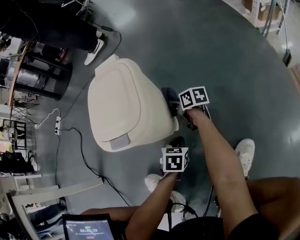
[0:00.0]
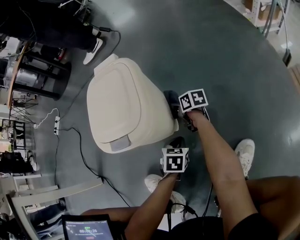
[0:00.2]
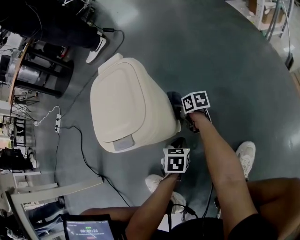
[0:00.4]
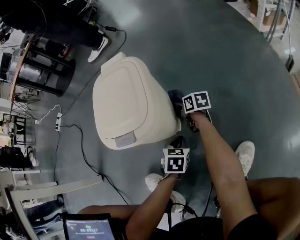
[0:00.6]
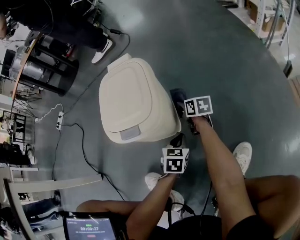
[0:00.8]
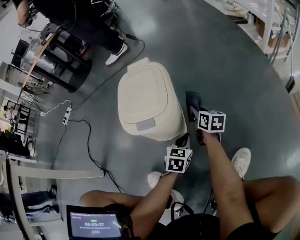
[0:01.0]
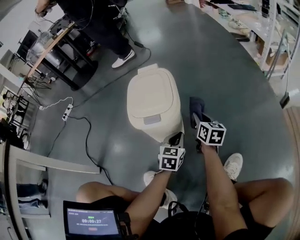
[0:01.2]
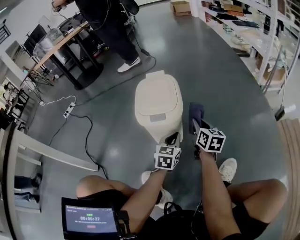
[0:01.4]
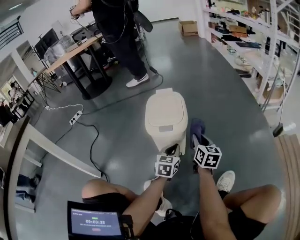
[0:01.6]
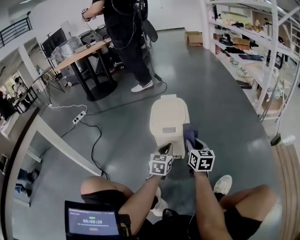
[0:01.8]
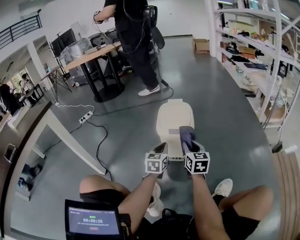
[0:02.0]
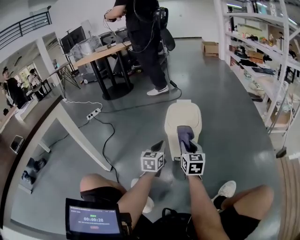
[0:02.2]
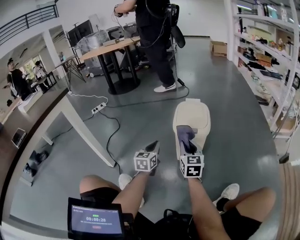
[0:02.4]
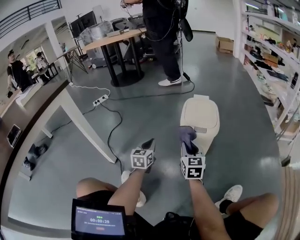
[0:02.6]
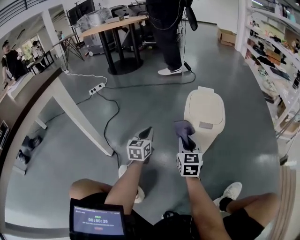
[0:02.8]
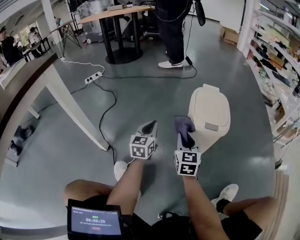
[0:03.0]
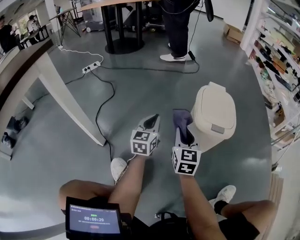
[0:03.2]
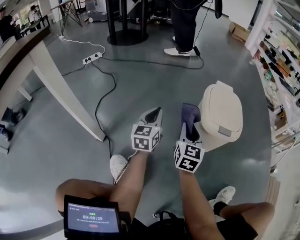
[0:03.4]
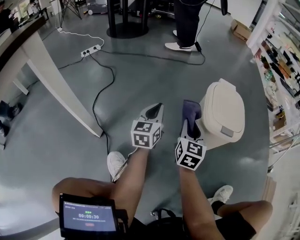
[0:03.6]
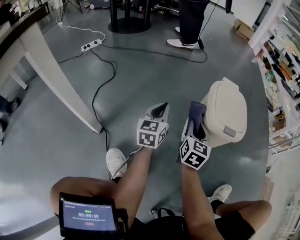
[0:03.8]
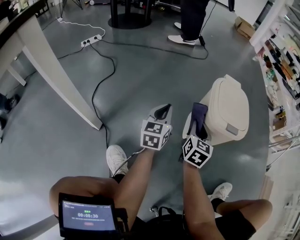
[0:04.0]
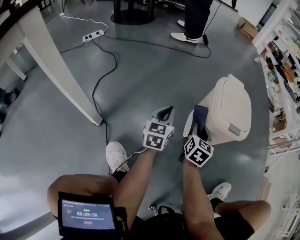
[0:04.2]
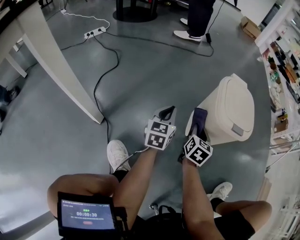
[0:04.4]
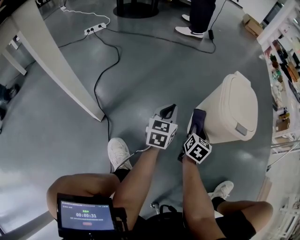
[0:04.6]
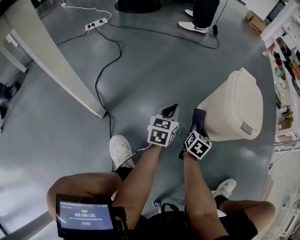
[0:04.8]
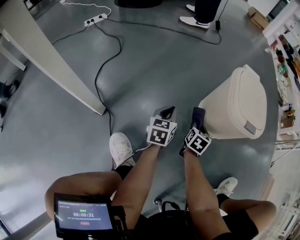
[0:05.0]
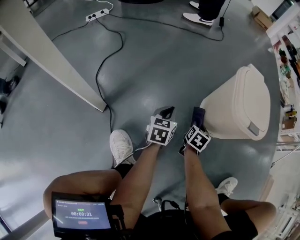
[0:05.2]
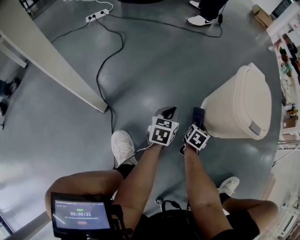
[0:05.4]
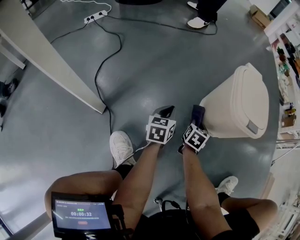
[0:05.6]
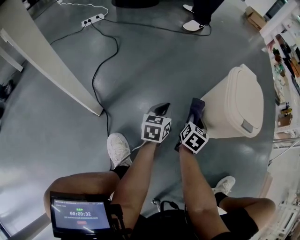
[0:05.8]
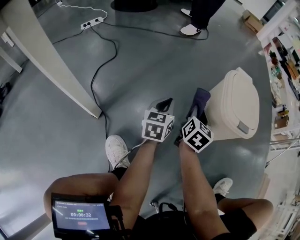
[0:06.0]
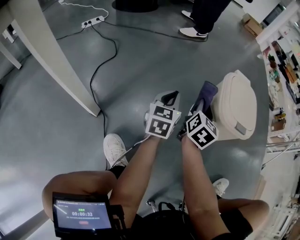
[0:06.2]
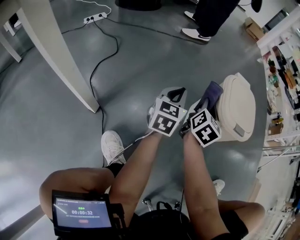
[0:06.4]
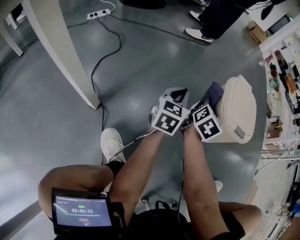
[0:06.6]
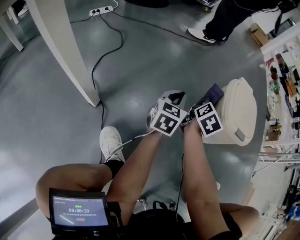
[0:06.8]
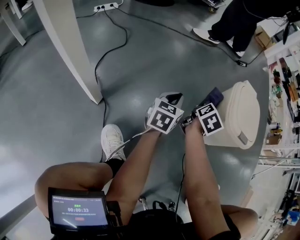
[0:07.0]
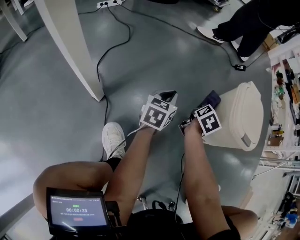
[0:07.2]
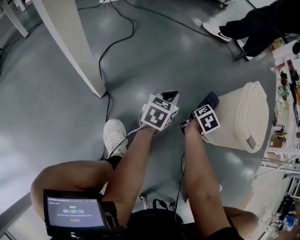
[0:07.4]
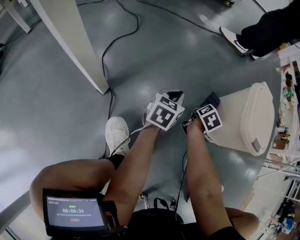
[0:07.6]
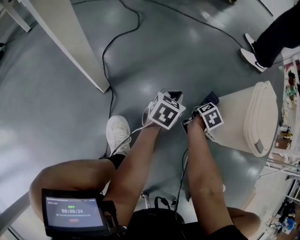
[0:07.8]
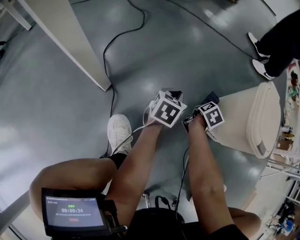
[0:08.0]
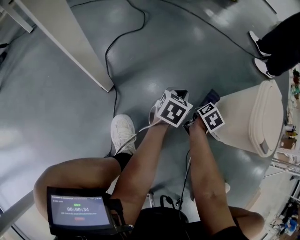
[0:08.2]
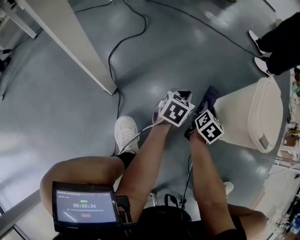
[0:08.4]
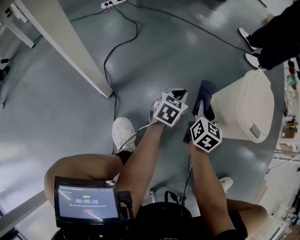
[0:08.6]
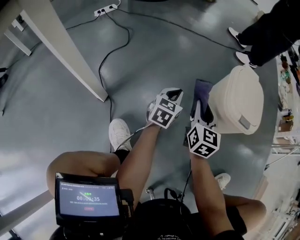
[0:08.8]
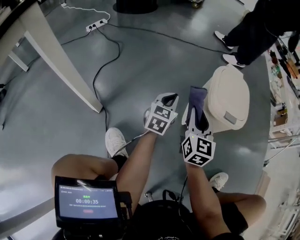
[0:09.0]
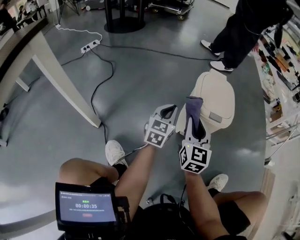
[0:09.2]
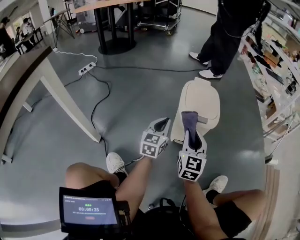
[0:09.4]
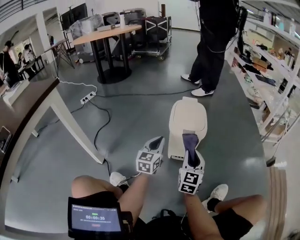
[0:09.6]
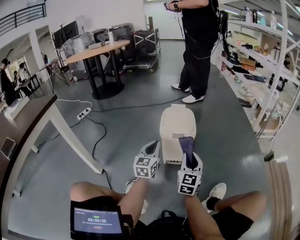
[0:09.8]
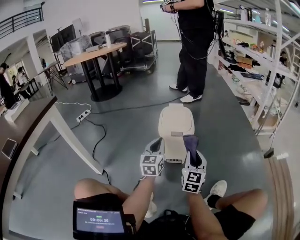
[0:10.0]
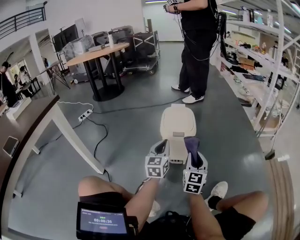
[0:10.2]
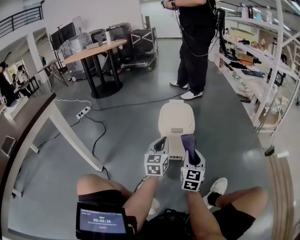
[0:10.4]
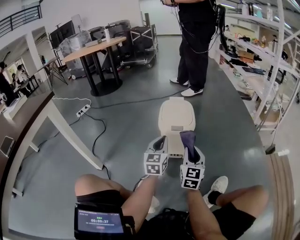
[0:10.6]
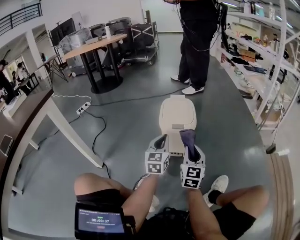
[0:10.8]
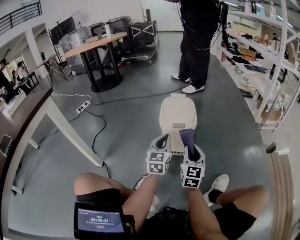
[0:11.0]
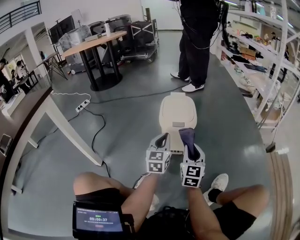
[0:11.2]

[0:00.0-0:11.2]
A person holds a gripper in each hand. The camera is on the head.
0:00.0 to 0:01.6: The right gripper travels upward and backward by some 30 cm, and changes its angle by approximately 50 degrees, while the left gripper is displaced upward by about 20 cm, and points its fingers roughly 30 degrees further upward.
0:01.6 to 0:03.2: The grippers both shift to the left by about 30 cm. The right gripper turns by about 30 degrees, while the left gripper rotates roughly 30 degrees.
0:03.2 to 0:04.8: The right gripper is displaced downward by approximately 20 cm, and swivels about 30 degrees. Meanwhile the left gripper goes roughly 10 cm downward.
0:04.8 to 0:06.4: The right gripper shifts about 15 cm upward, and changes its angle by roughly 20 degrees. Meanwhile the left gripper goes roughly 10 cm upward.
0:06.4 to 0:08.0: Both grippers travel together downward, roughly 20 cm. The right gripper swivels about 30 degrees, while the left gripper rotates about 20 degrees.
0:08.0 to 0:09.6: The right gripper travels upward, backward and to the right by some 40 cm, and angles its fingers upward, by approximately 40 degrees; the left gripper goes some 30 cm upward and to the right, and swivels some 30 degrees.
0:09.6 to 0:11.2: The left gripper moves to the right, about 10 cm.

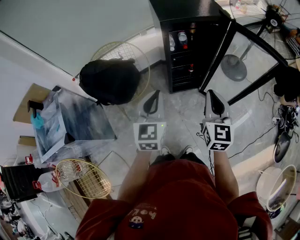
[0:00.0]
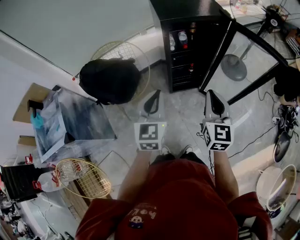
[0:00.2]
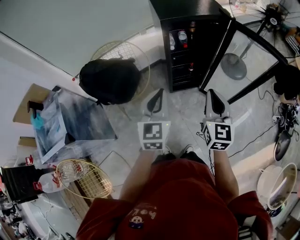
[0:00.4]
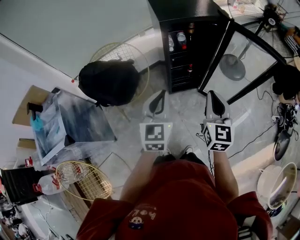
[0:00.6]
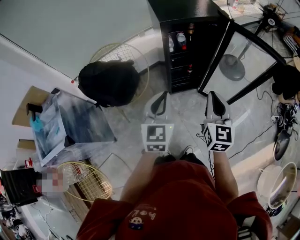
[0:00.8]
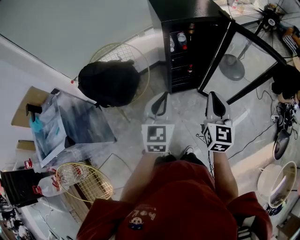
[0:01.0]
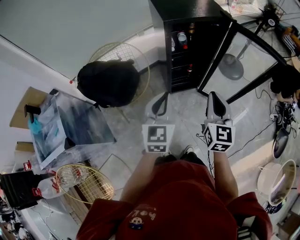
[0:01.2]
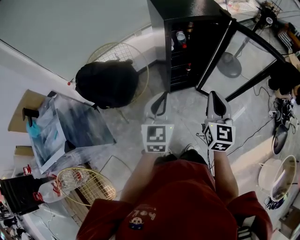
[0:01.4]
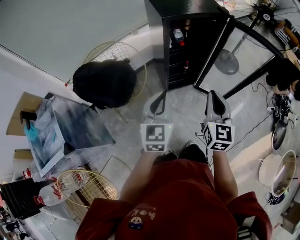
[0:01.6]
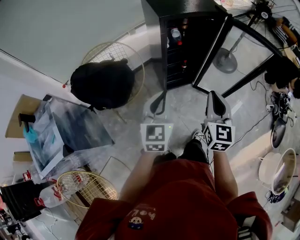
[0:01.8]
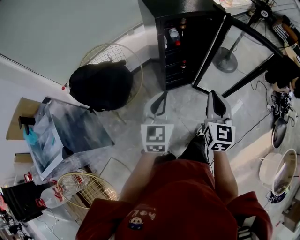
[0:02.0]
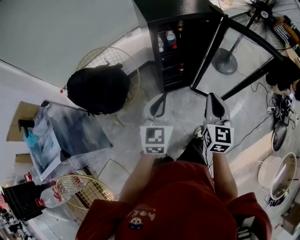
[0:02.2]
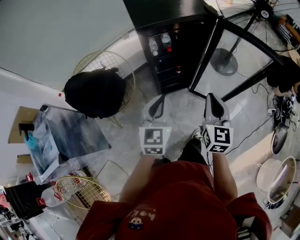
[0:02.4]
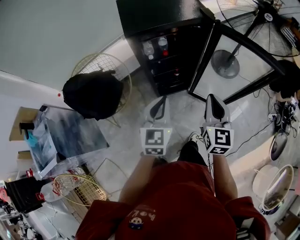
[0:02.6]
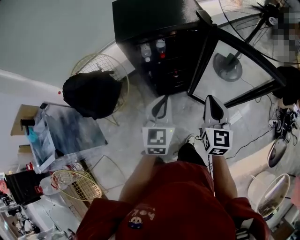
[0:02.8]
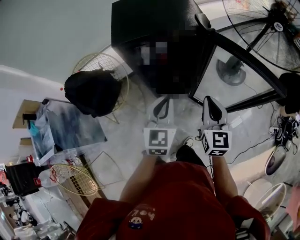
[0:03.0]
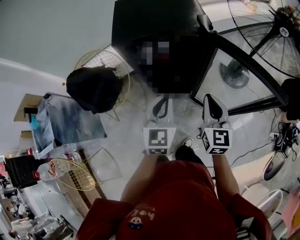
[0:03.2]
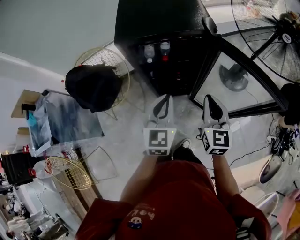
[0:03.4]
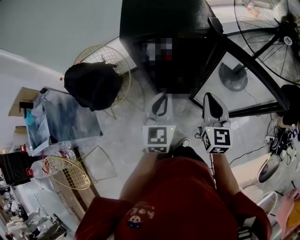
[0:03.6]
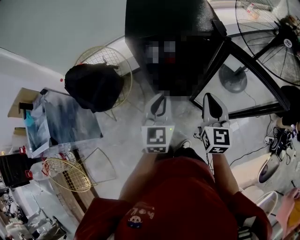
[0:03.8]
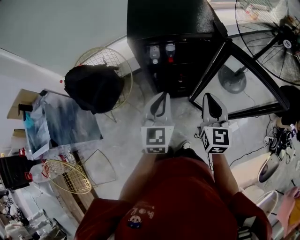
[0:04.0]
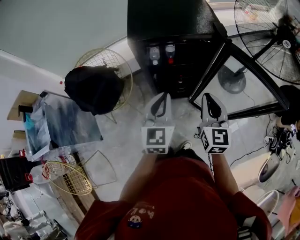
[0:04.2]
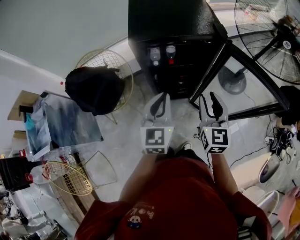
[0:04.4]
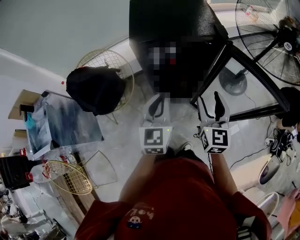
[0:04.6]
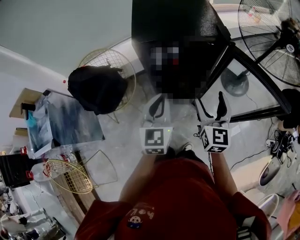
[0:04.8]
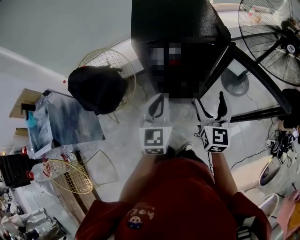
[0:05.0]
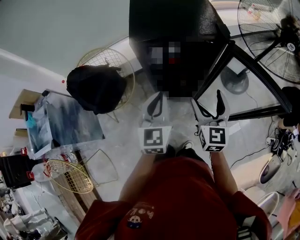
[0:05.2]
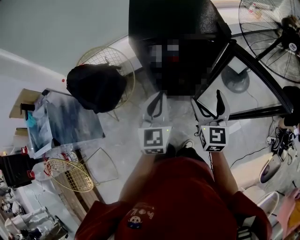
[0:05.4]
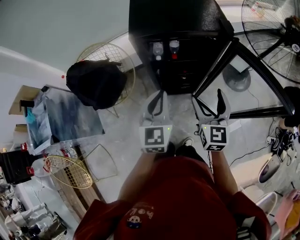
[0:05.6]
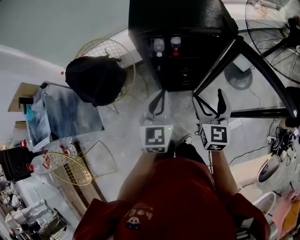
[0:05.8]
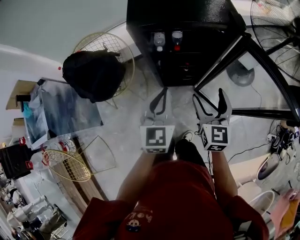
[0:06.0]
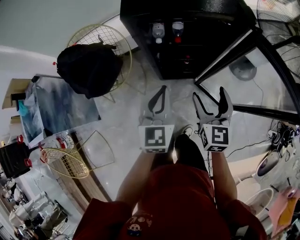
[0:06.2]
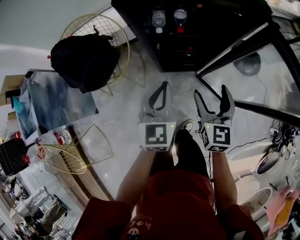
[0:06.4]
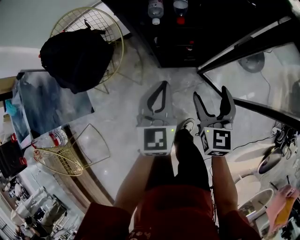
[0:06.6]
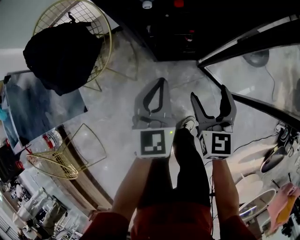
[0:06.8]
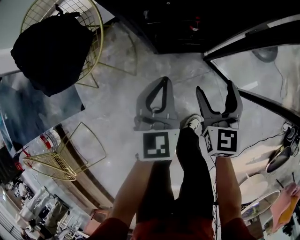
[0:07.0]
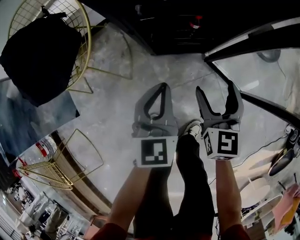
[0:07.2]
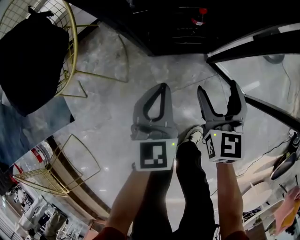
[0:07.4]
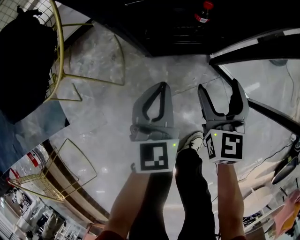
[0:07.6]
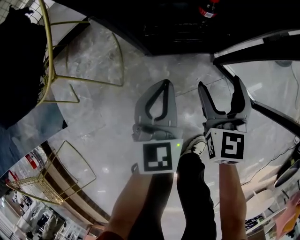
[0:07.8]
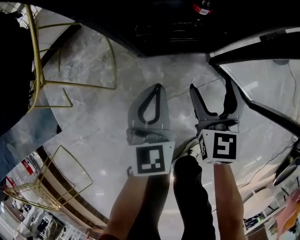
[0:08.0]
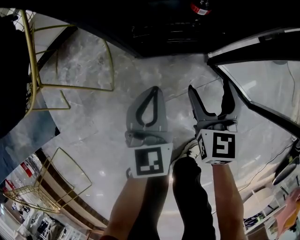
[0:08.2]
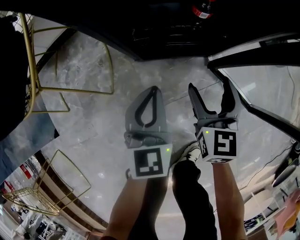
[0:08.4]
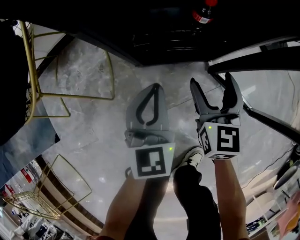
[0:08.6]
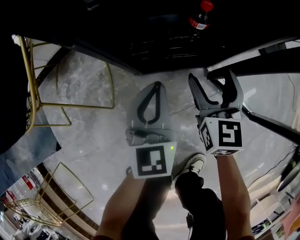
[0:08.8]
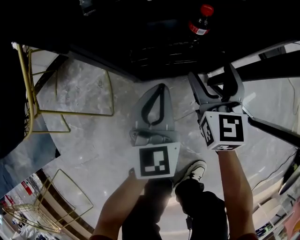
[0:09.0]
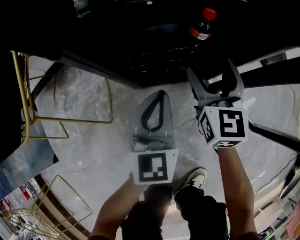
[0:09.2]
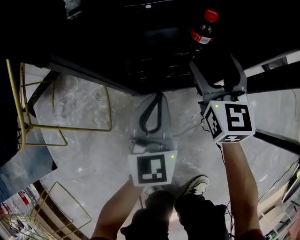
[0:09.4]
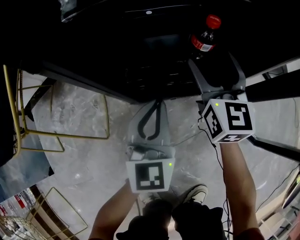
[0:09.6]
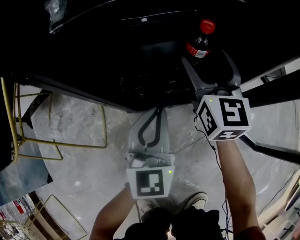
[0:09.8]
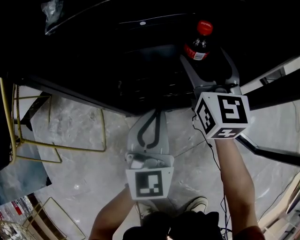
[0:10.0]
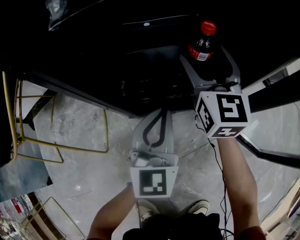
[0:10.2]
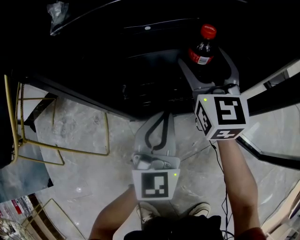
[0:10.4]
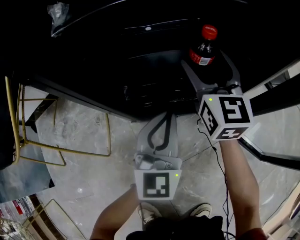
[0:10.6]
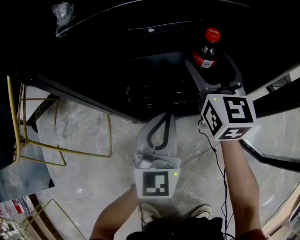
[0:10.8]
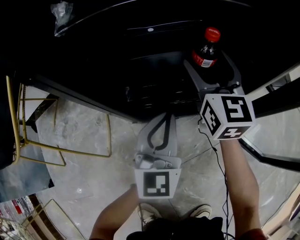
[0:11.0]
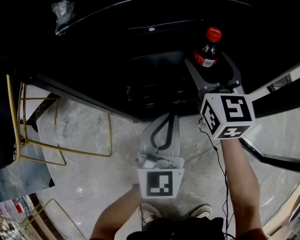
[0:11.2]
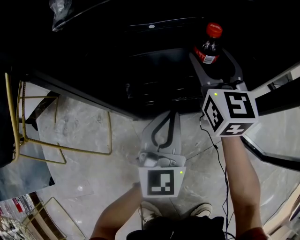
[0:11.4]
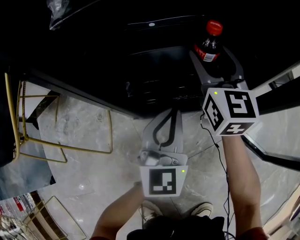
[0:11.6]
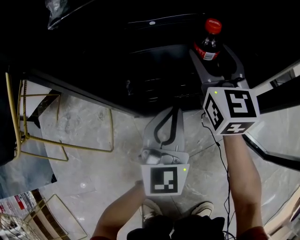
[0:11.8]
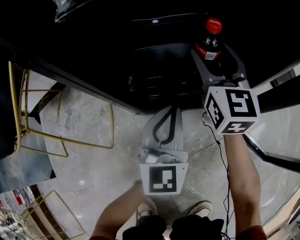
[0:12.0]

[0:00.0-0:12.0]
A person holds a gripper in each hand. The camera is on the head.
0:00.0 to 0:01.6: There are only small adjustments of the grippers.
0:01.6 to 0:03.0: The left gripper goes some 30 cm to the right and forward; the right gripper shifts roughly 30 cm forward and to the right.
0:03.0 to 0:04.4: The grippers both shift to the left by some 5 cm.
0:04.4 to 0:06.0: The left gripper changes place by about 5 cm. Meanwhile the right gripper goes approximately 5 cm downward, and opens its fingers.
0:06.0 to 0:07.6: Both grippers move downward, about 50 cm.
0:07.6 to 0:09.0: The left gripper shifts approximately 10 cm downward and forward. The right gripper travels forward and downward by some 15 cm.
0:09.0 to 0:10.4: The right gripper travels forward by approximately 10 cm. The left gripper is displaced downward by roughly 5 cm.
0:10.4 to 0:12.0: The two grippers keep their place.
